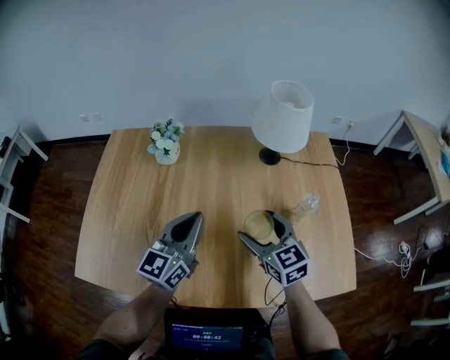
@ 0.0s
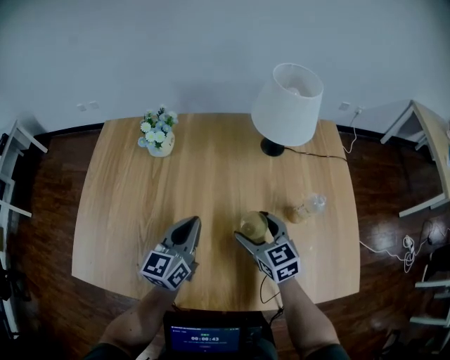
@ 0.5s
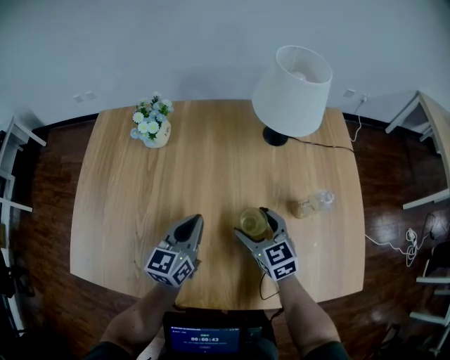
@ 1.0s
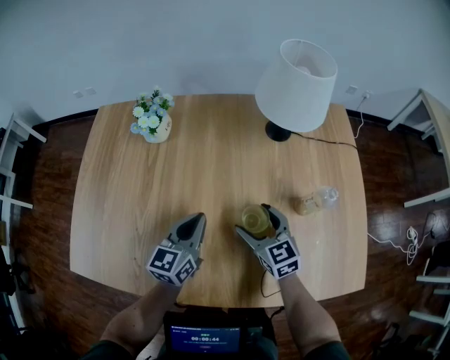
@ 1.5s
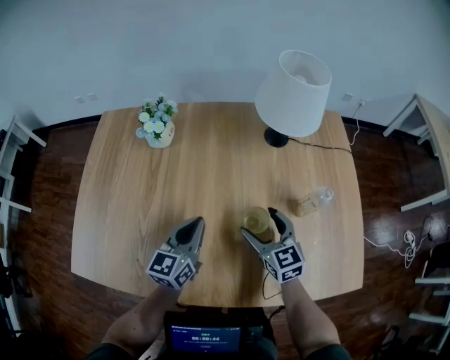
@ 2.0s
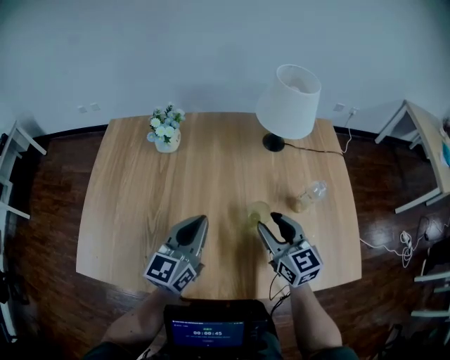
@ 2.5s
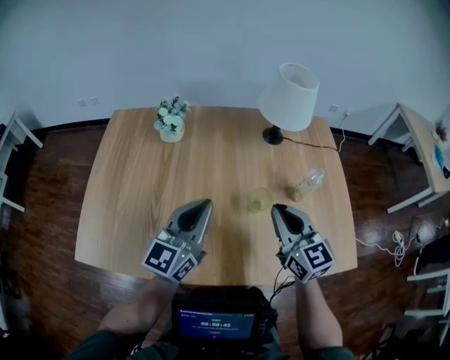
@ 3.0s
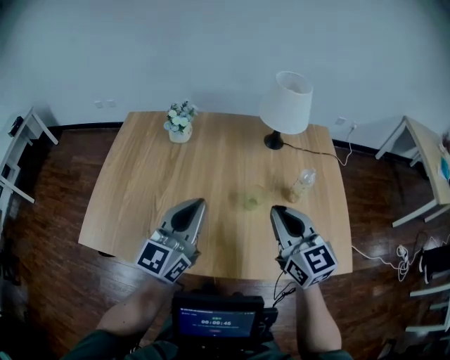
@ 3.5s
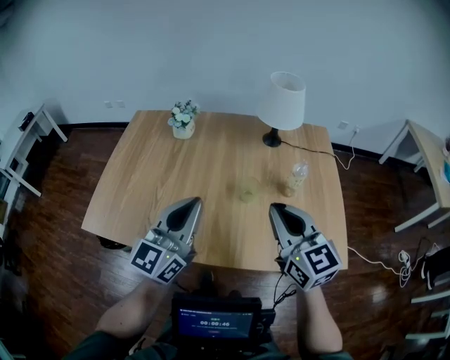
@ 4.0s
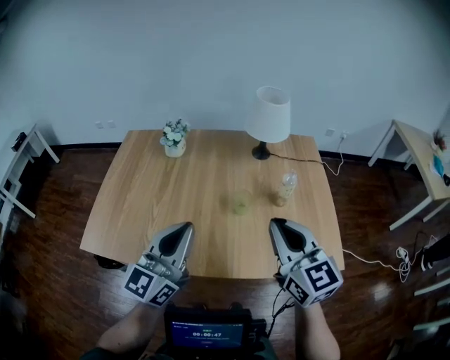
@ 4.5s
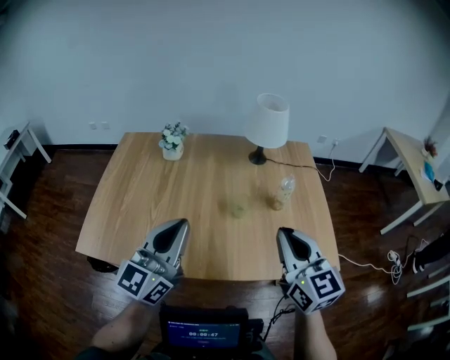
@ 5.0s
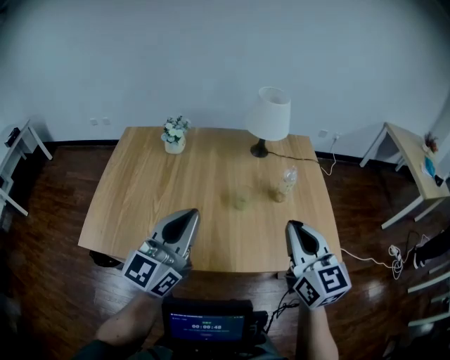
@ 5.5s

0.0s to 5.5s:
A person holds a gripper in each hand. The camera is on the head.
0.0s to 2.0s: Both grippers travel together downward, approximately 10 cm.
2.0s to 3.5s: Both grippers move upward and backward, approximately 20 cm. The right gripper closes up, while the left gripper turns by roughly 20 degrees.
3.5s to 5.5s: The grippers both shift backward and upward by some 10 cm.

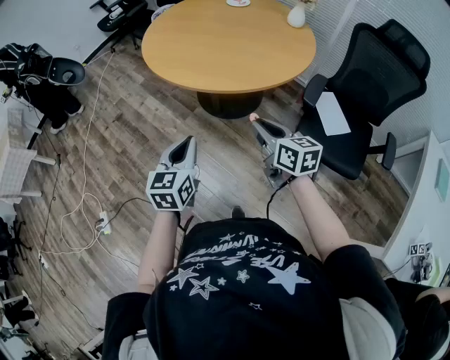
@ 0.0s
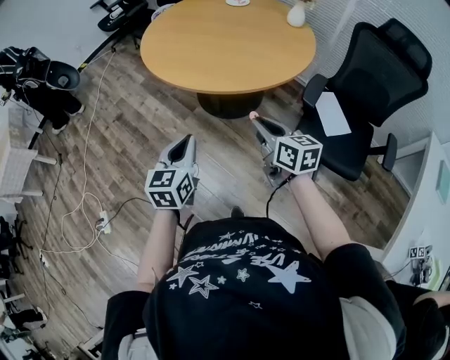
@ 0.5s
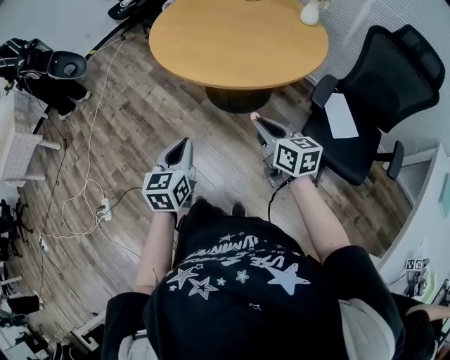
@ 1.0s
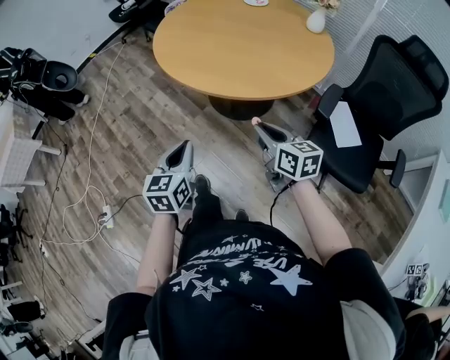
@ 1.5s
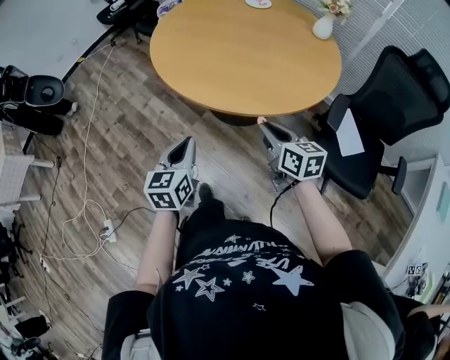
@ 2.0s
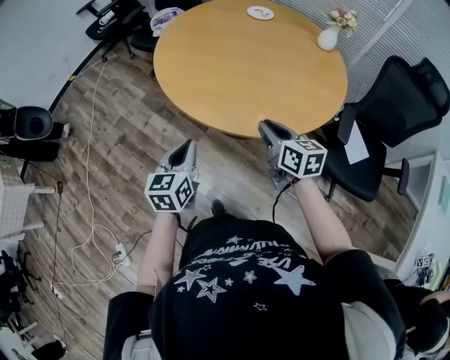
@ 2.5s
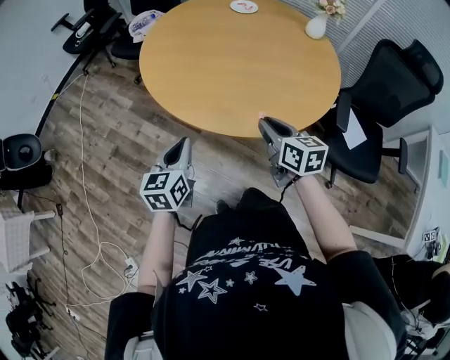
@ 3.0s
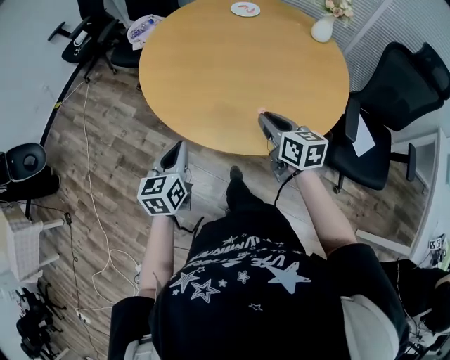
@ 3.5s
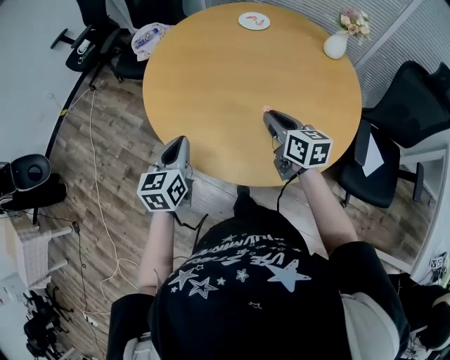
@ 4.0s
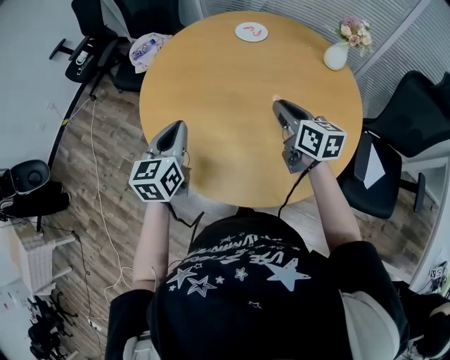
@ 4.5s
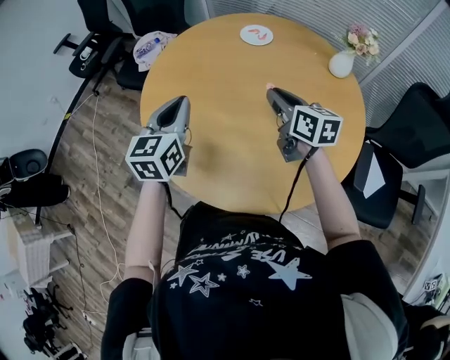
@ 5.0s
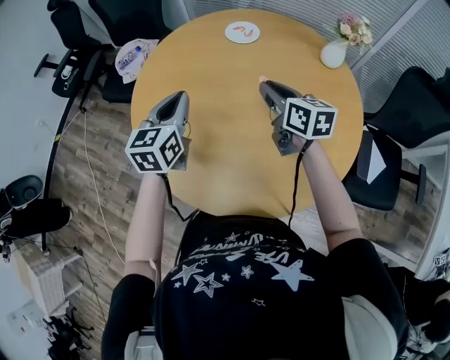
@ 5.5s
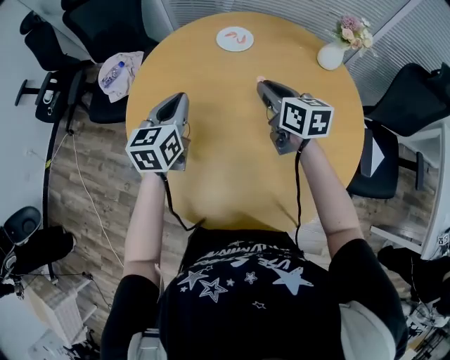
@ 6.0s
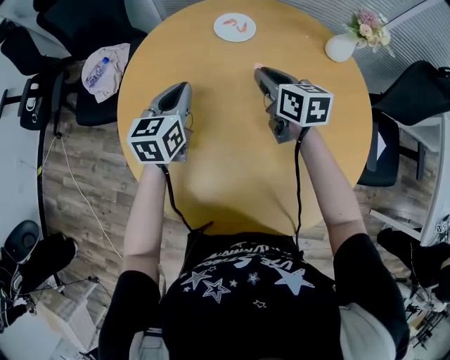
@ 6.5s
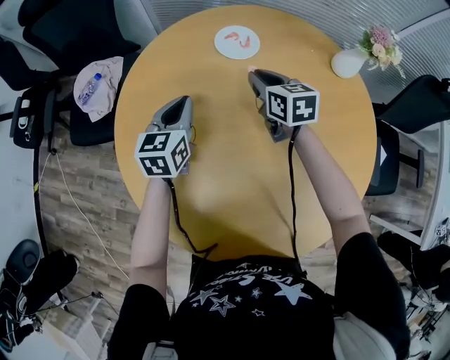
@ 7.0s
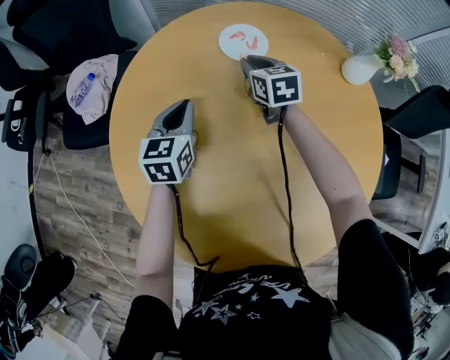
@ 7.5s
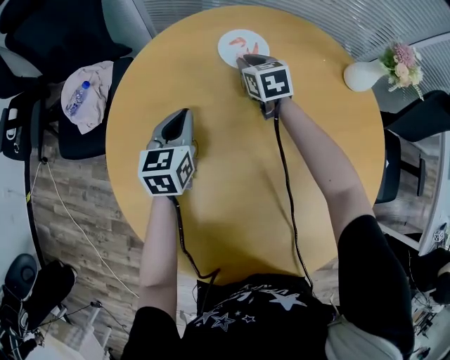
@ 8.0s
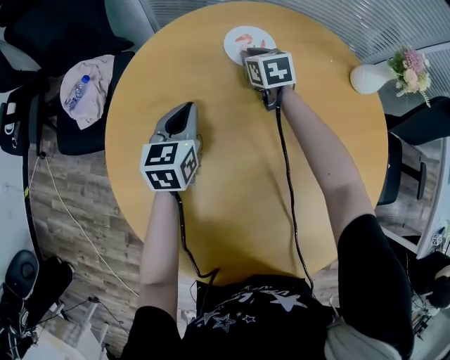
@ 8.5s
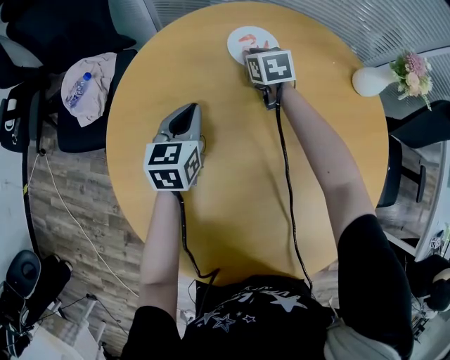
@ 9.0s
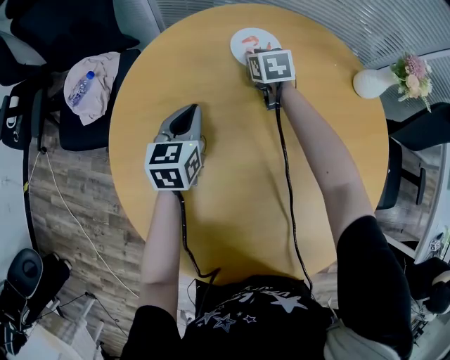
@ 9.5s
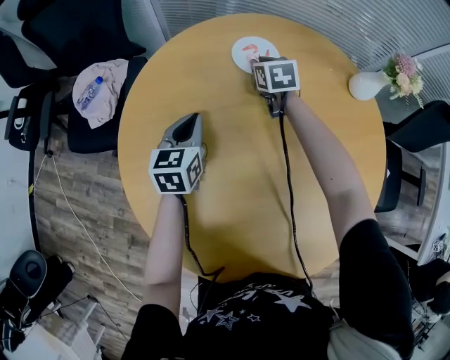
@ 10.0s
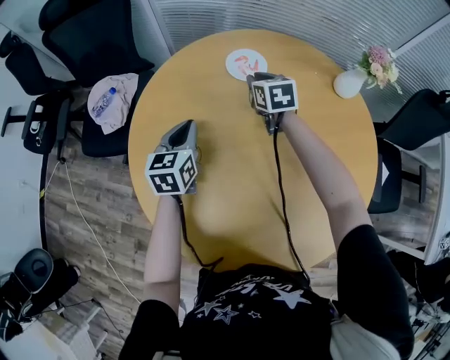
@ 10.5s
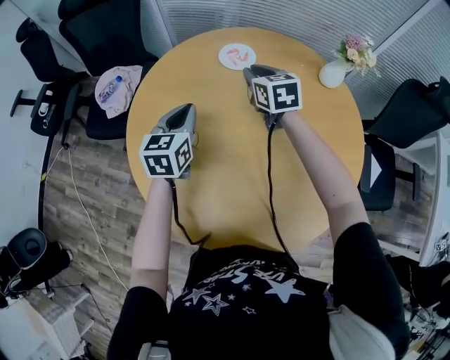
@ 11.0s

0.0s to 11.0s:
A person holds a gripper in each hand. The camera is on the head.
0.0s to 2.0s: The right gripper heads forward, covering approximately 15 cm. Meanwhile the left gripper goes approximately 15 cm forward and to the left.
2.0s to 3.5s: The left gripper moves forward and to the left, some 25 cm. The right gripper travels forward by some 20 cm.
3.5s to 5.5s: The grippers both shift forward by roughly 35 cm.
5.5s to 7.5s: The grippers both shift forward and downward by approximately 35 cm. The right gripper swivels about 30 degrees.
7.5s to 9.0s: The right gripper is displaced forward and downward by approximately 10 cm.
9.0s to 11.0s: The grippers both shift upward and backward by roughly 25 cm.

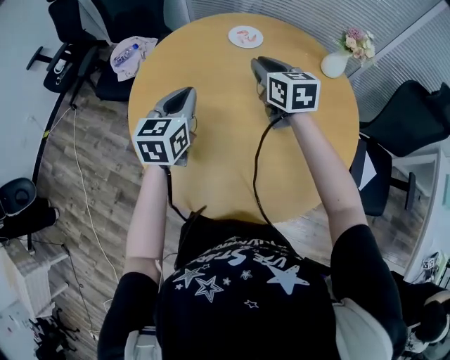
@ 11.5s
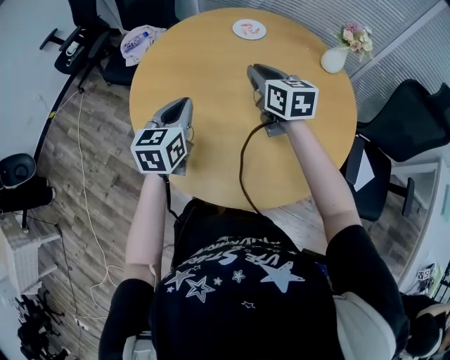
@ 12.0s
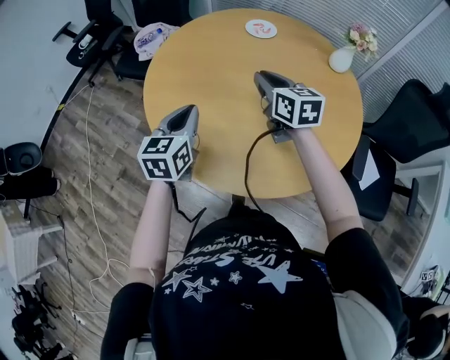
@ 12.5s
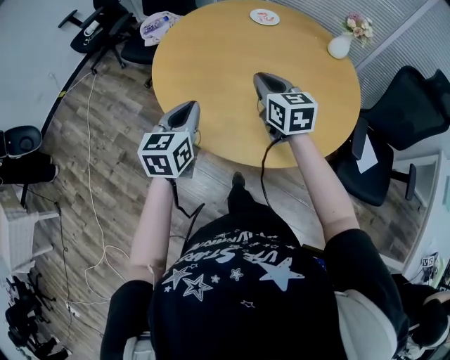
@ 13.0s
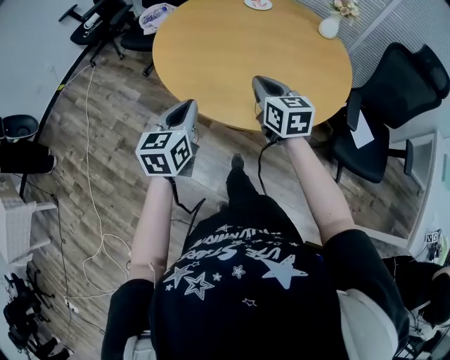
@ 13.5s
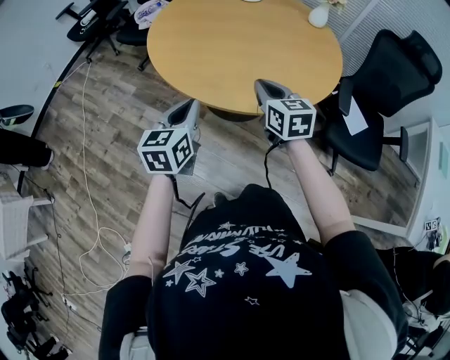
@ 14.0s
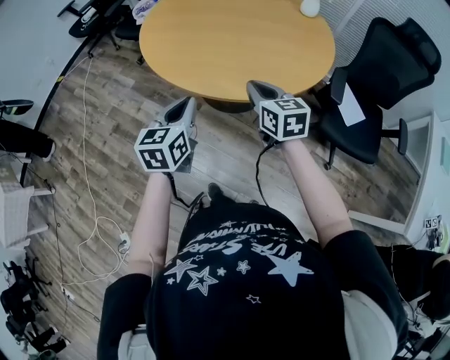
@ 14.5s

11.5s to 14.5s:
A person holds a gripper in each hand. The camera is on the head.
11.5s to 13.0s: The two grippers go some 25 cm backward.
13.0s to 14.5s: Both grippers travel together backward, some 25 cm.

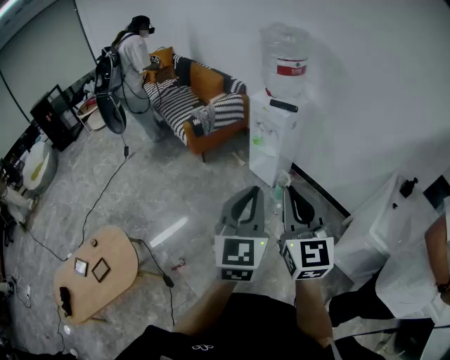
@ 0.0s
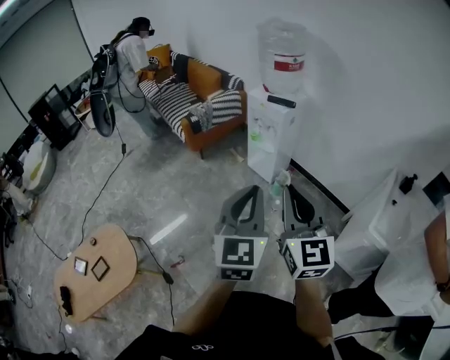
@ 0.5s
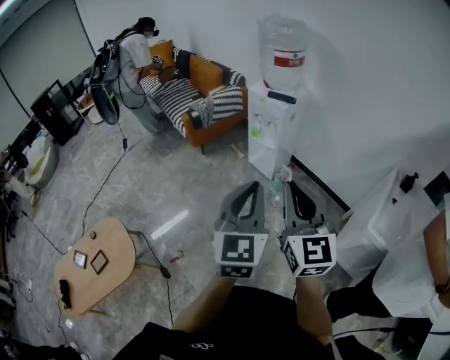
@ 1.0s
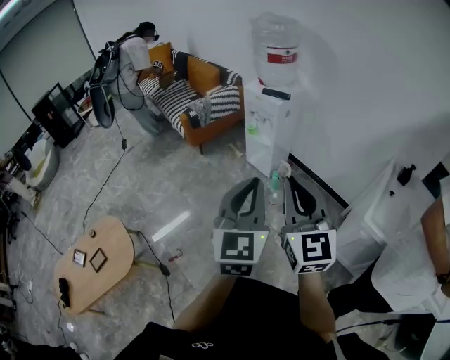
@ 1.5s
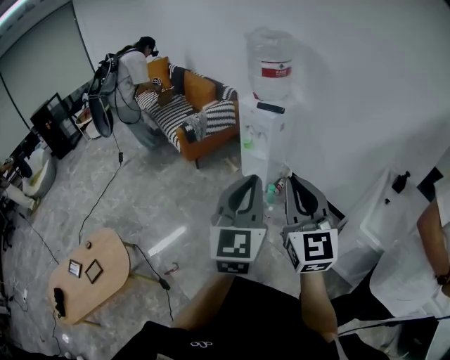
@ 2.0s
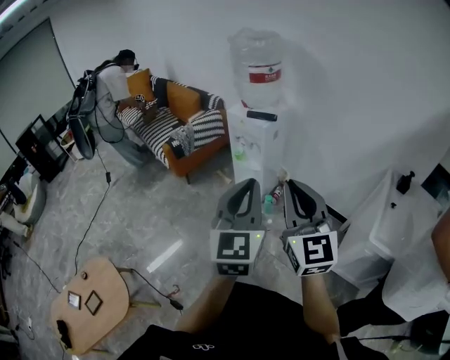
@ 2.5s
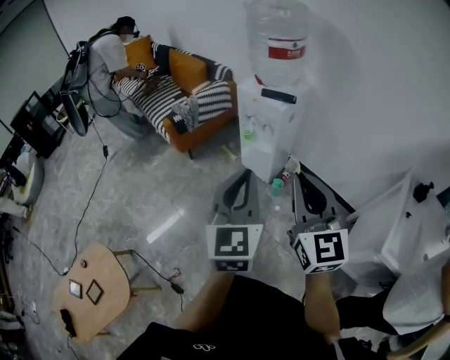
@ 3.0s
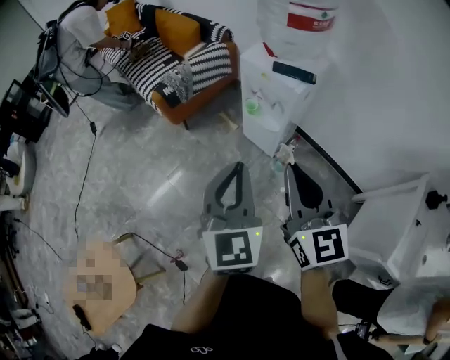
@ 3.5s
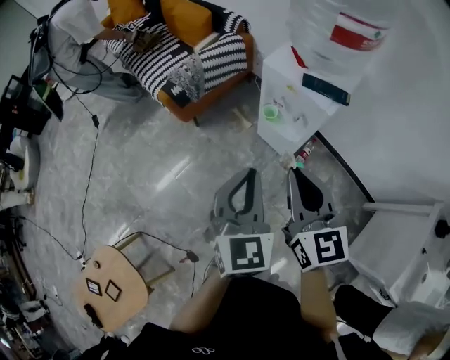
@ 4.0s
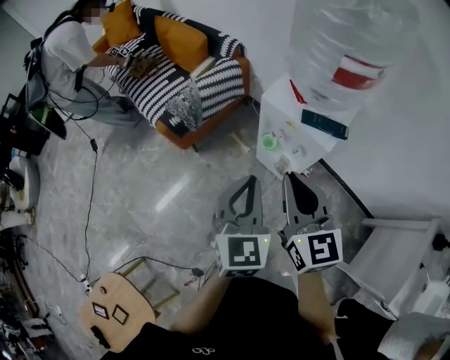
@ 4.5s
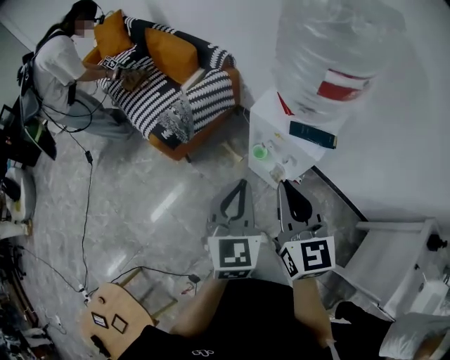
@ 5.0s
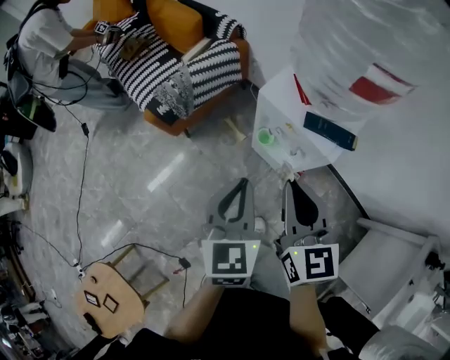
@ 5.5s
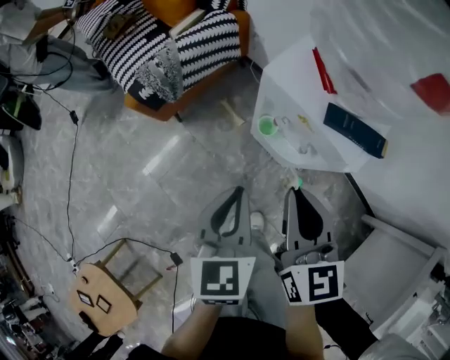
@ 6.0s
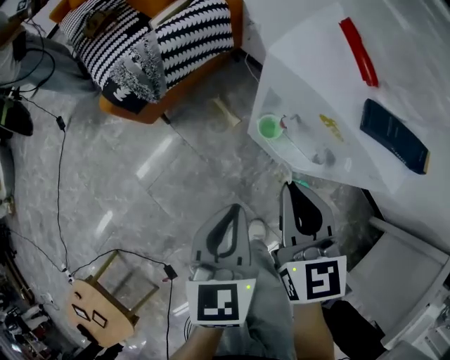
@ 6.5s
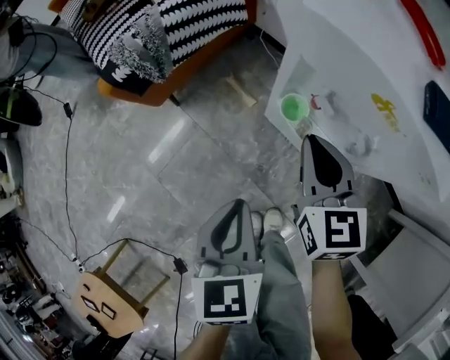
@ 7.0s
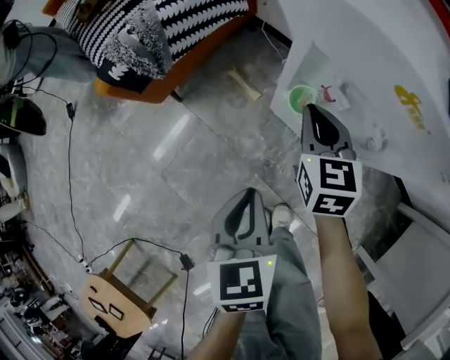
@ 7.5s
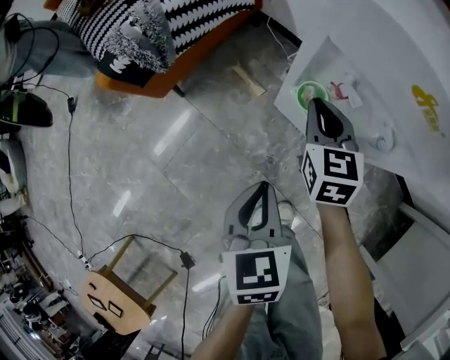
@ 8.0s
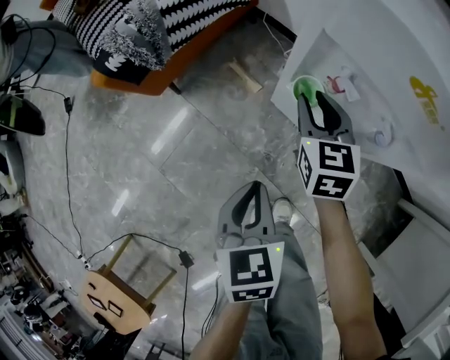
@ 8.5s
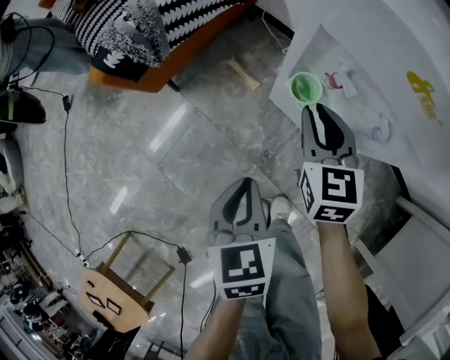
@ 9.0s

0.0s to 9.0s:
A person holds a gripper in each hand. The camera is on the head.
0.0s to 2.0s: The two grippers go approximately 5 cm to the right.
2.0s to 4.5s: The two grippers travel together, forward, approximately 60 cm. The right gripper turns by approximately 20 degrees. The left gripper changes its angle by approximately 20 degrees.
4.5s to 7.0s: The right gripper shifts some 40 cm downward and forward, while the left gripper is displaced downward by about 35 cm, and changes its angle by about 30 degrees.
7.0s to 9.0s: Both grippers travel together downward, about 10 cm.
